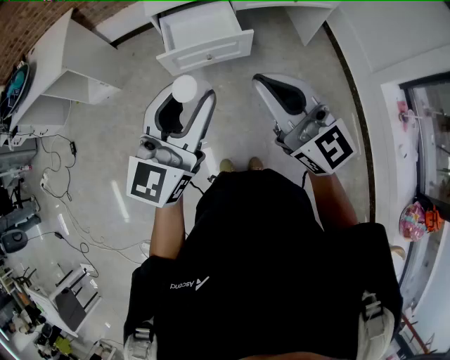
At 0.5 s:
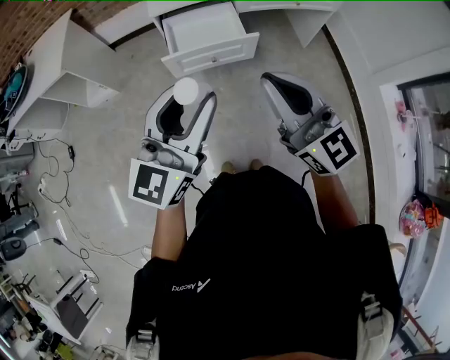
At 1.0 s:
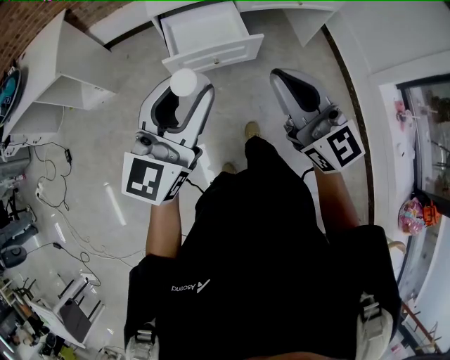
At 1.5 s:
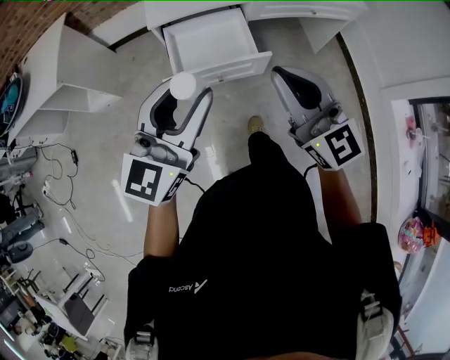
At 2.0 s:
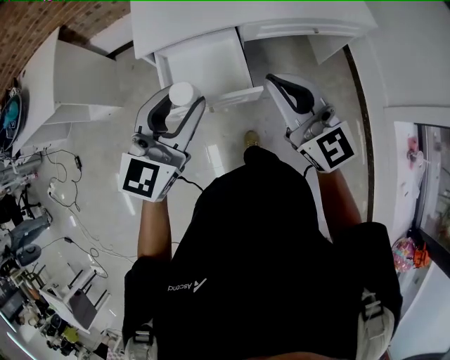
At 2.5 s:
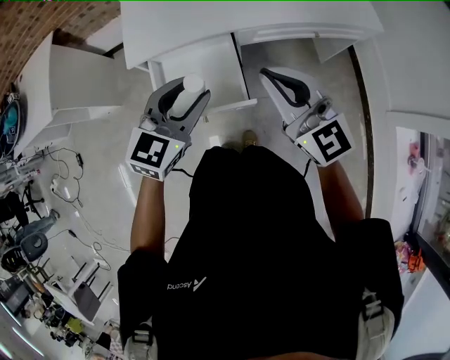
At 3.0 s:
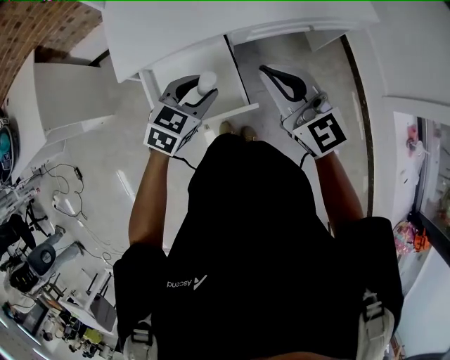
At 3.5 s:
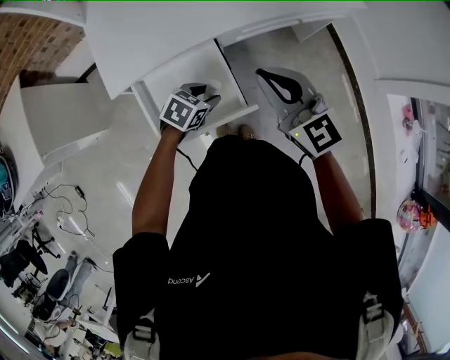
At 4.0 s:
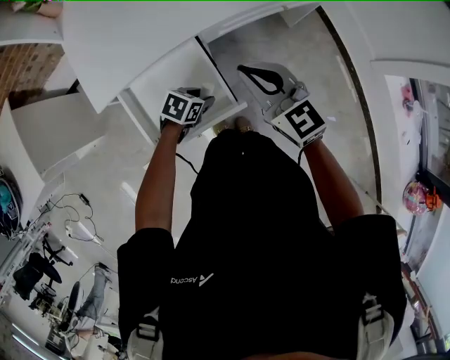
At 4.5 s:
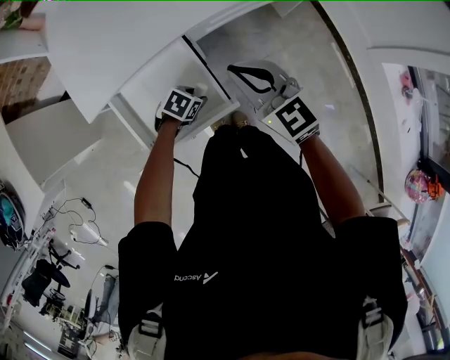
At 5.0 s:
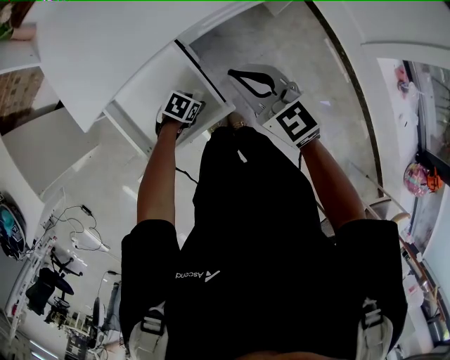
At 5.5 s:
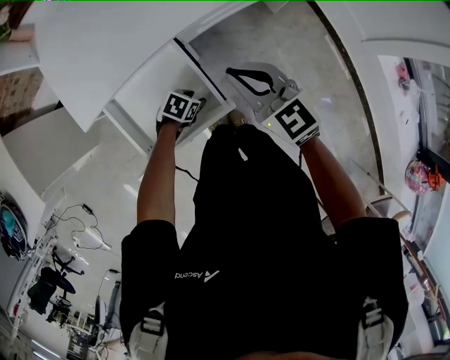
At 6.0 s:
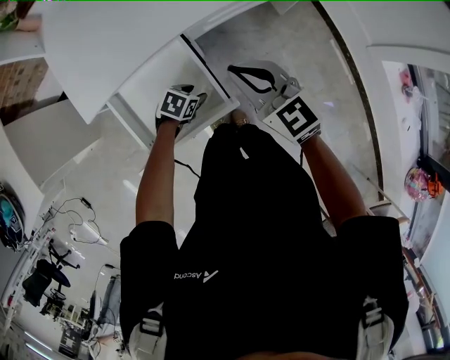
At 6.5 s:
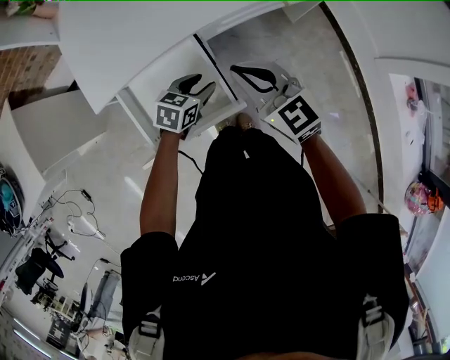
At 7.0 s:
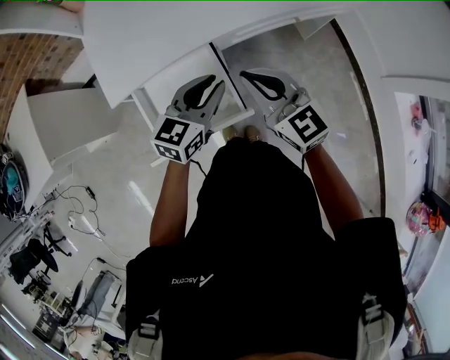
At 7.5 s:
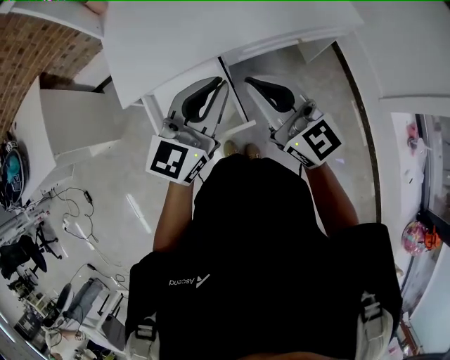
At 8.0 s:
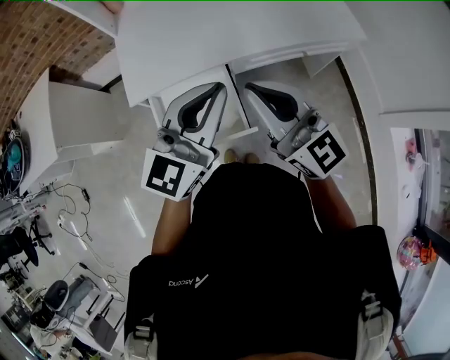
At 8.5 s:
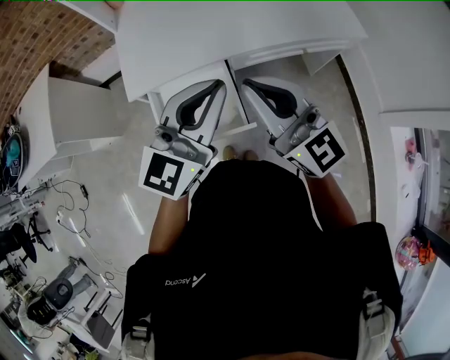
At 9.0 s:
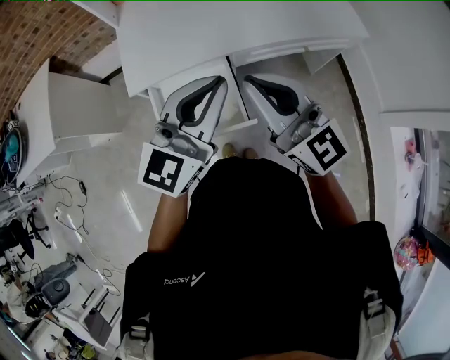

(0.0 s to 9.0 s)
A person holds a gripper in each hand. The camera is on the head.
0.0 s - 2.0 s: The grippers both shift forward by some 35 cm.
2.0 s - 4.5 s: The right gripper goes some 15 cm downward, and turns by about 20 degrees; the left gripper shifts about 40 cm downward, and angles its fingers downward, by about 50 degrees.
4.5 s - 7.0 s: The left gripper moves upward, roughly 25 cm, and angles its fingers upward, by roughly 40 degrees.
7.0 s - 9.0 s: Both grippers move upward, approximately 20 cm. The left gripper rotates some 30 degrees, while the right gripper changes its angle by about 20 degrees.

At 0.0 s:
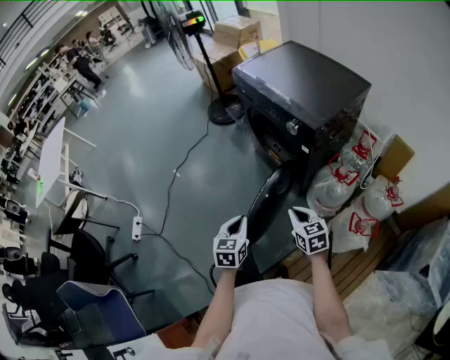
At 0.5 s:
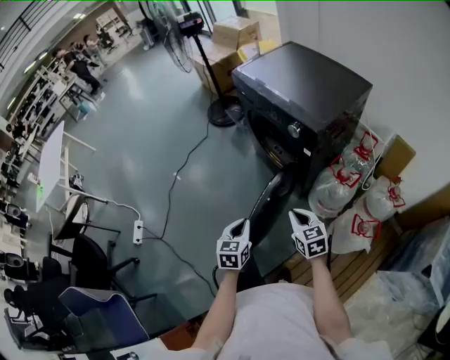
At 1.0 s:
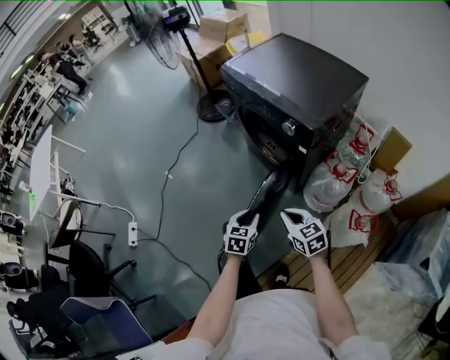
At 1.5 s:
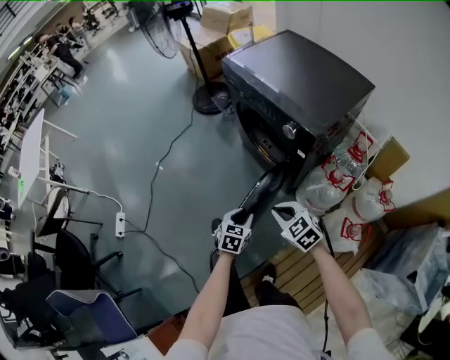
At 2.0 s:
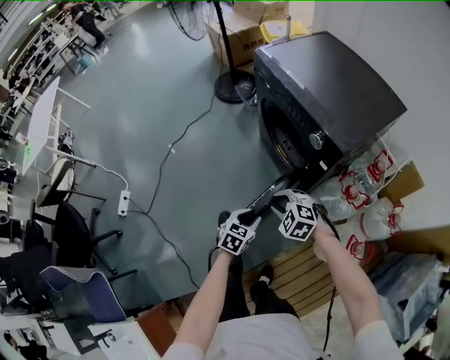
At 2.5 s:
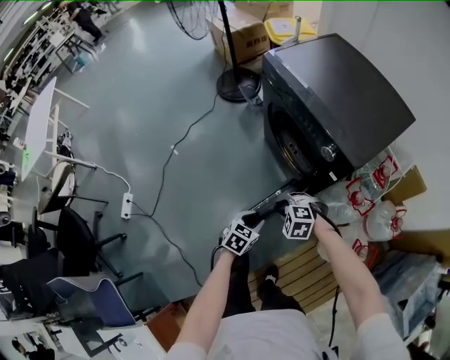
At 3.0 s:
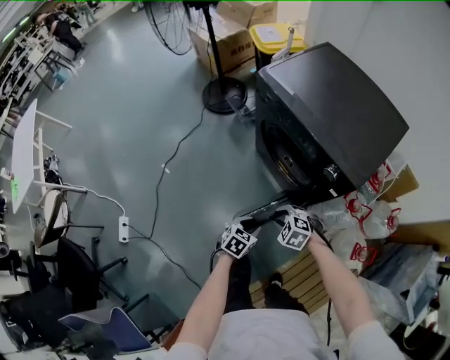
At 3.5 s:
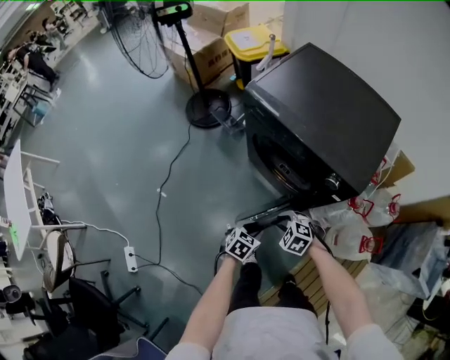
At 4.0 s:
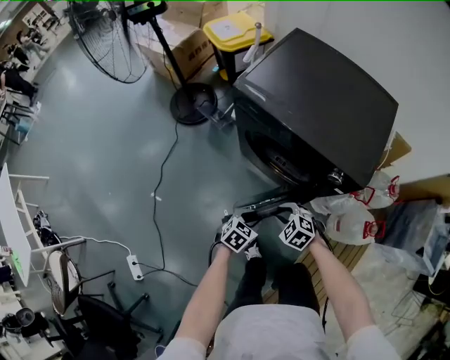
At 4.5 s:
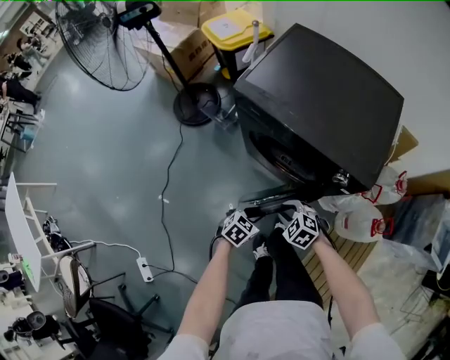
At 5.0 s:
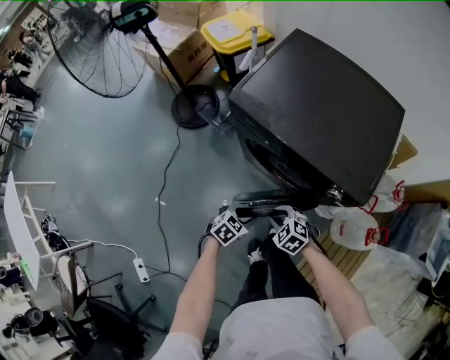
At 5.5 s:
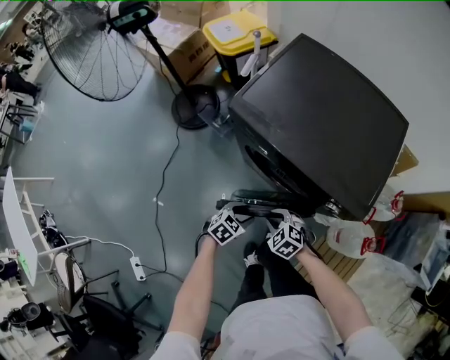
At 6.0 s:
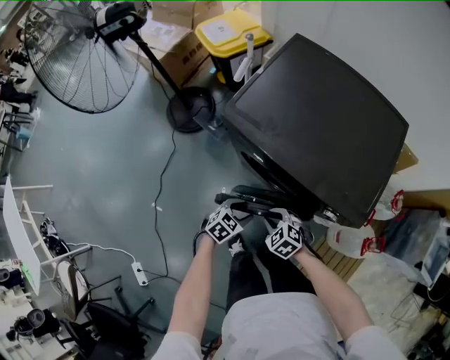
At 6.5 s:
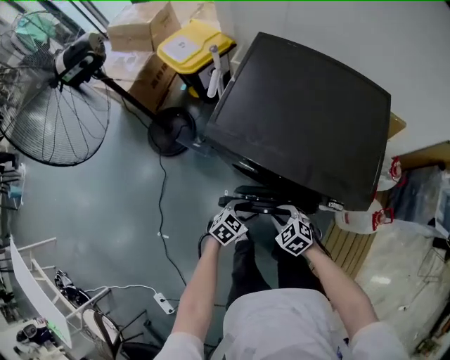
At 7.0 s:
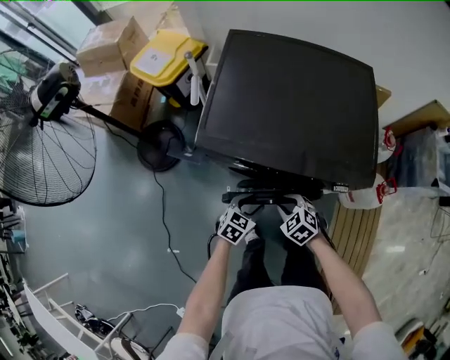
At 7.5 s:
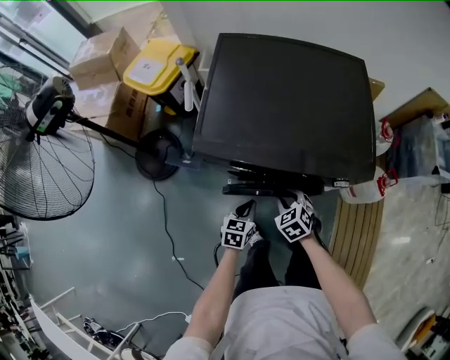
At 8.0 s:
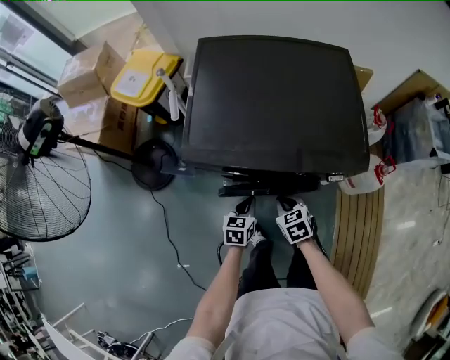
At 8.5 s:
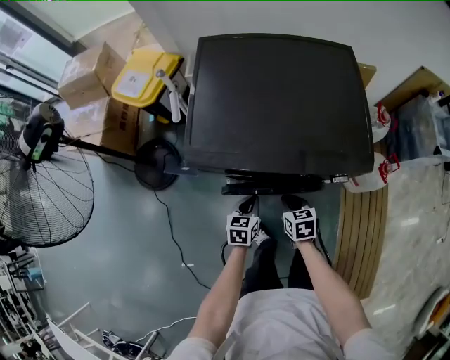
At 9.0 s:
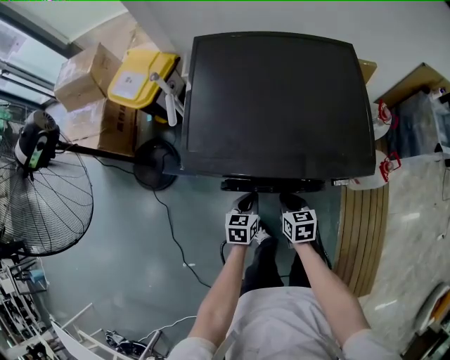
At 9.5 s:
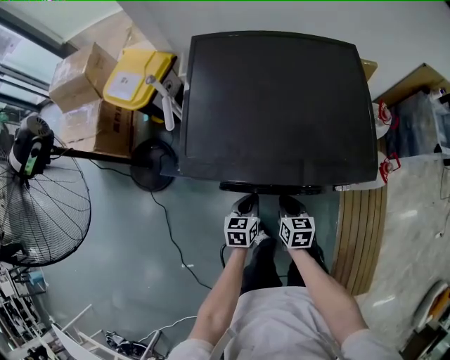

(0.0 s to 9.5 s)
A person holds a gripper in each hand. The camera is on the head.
0.0 s - 2.0 s: The left gripper moves downward and forward, roughly 15 cm, swivels about 20 degrees, and opens up. The right gripper moves forward, to the left and downward, some 15 cm, rotates around the line of its fingers by approximately 50 degrees, counterclockwise from behind, and opens its fingers.
2.0 s - 4.0 s: The left gripper ends up some 25 cm from where it was, and changes its angle by about 40 degrees; the right gripper shifts by some 20 cm, and rotates roughly 40 degrees.
4.0 s - 5.5 s: The right gripper changes place by roughly 10 cm, while the left gripper ends up some 10 cm from where it was.
5.5 s - 7.5 s: The right gripper shifts by some 15 cm, and swivels roughly 50 degrees, while the left gripper changes place by some 15 cm, and closes up.
7.5 s - 9.5 s: The left gripper moves forward, about 5 cm. Meanwhile the right gripper rolls clockwise, seen from behind, by some 50 degrees, and closes up.

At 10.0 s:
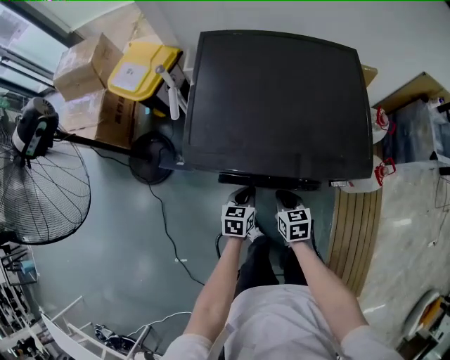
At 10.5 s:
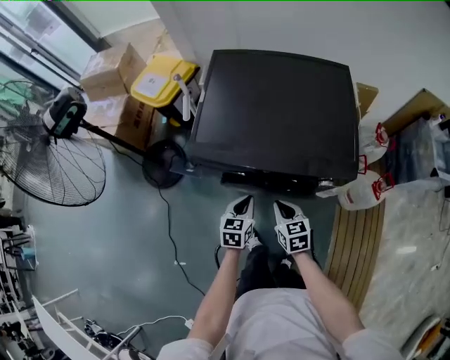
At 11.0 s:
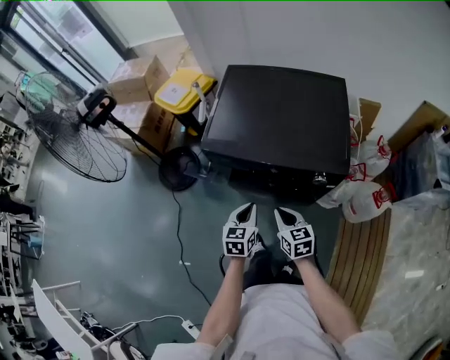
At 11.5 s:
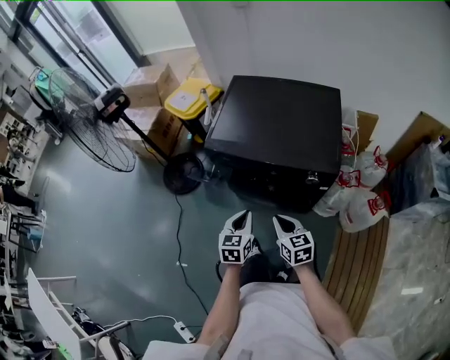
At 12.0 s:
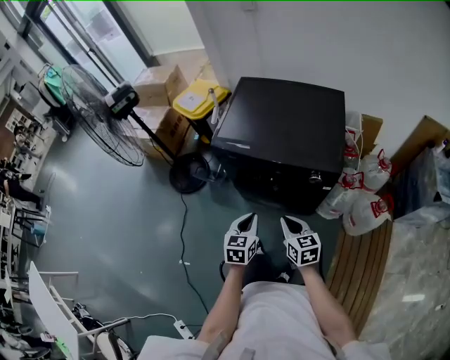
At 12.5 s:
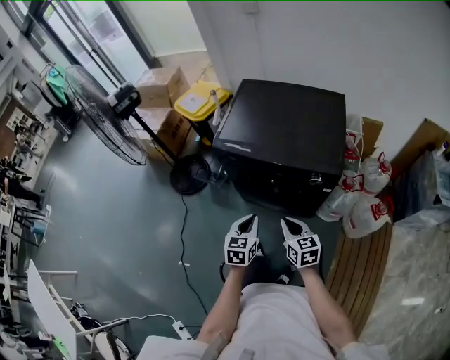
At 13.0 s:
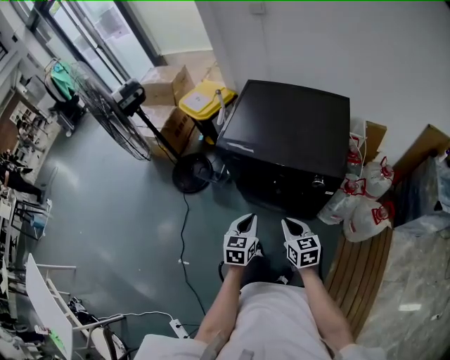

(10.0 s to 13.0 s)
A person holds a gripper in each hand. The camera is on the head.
10.0 s - 11.5 s: The right gripper moves backward and upward, some 25 cm, and changes its angle by roughly 30 degrees. Meanwhile the left gripper shifts about 25 cm upward and backward, and changes its angle by some 20 degrees.
11.5 s - 13.0 s: The grippers make only small movements.

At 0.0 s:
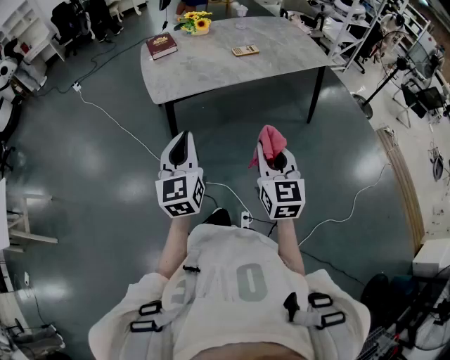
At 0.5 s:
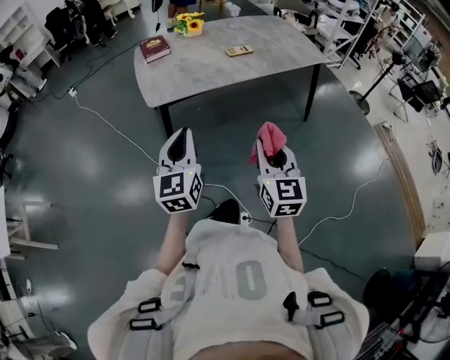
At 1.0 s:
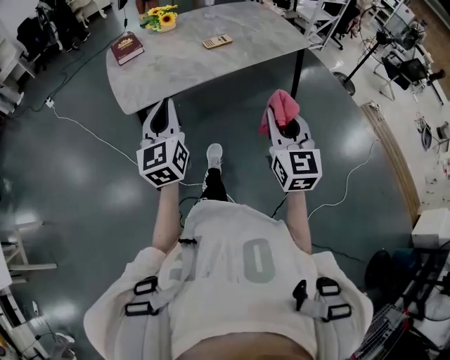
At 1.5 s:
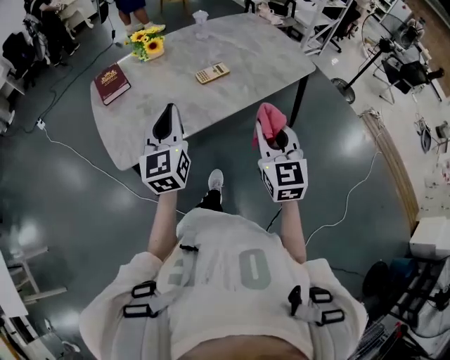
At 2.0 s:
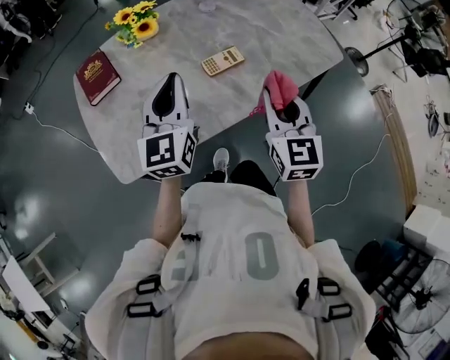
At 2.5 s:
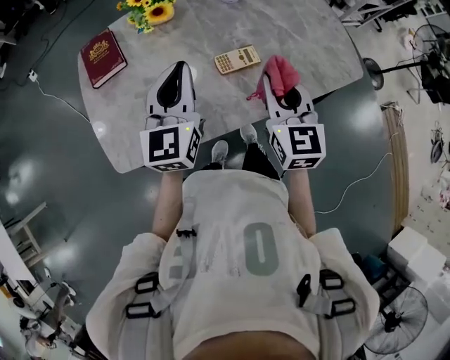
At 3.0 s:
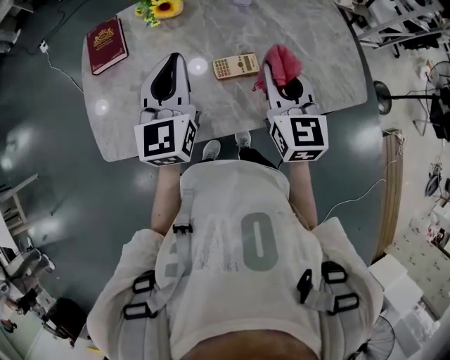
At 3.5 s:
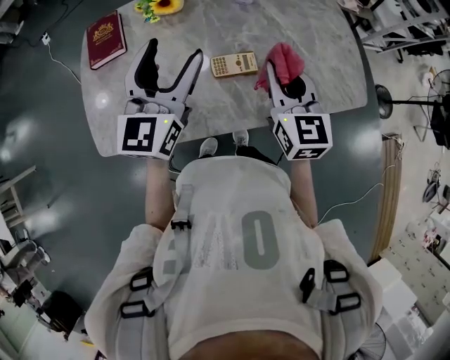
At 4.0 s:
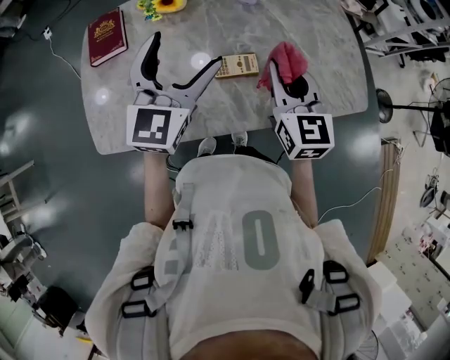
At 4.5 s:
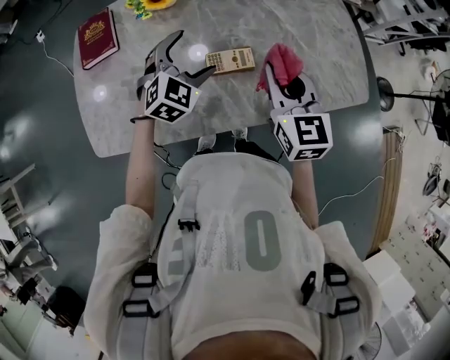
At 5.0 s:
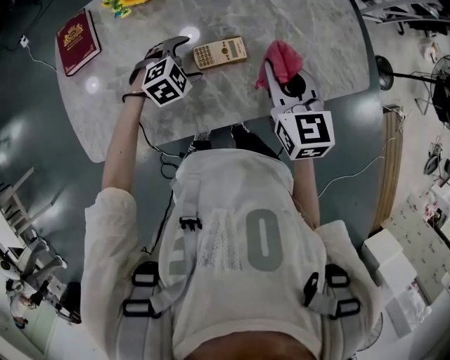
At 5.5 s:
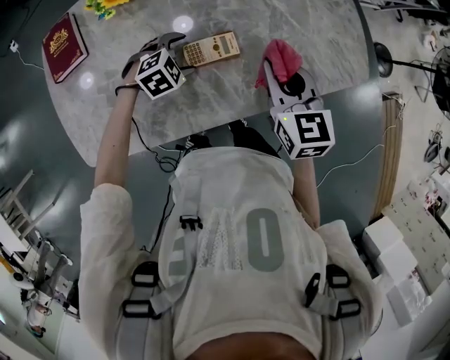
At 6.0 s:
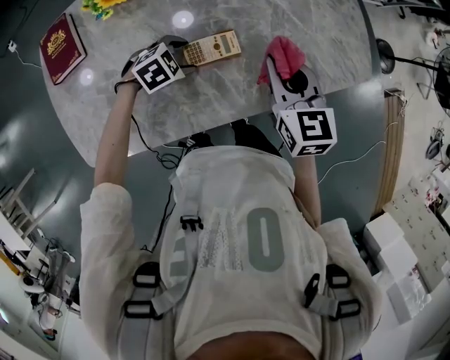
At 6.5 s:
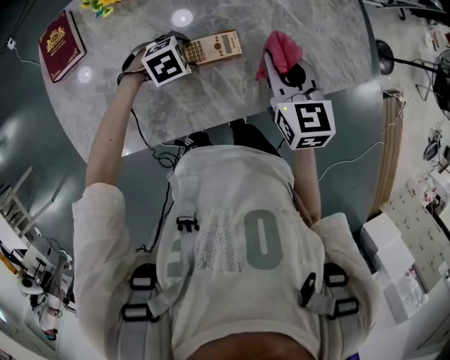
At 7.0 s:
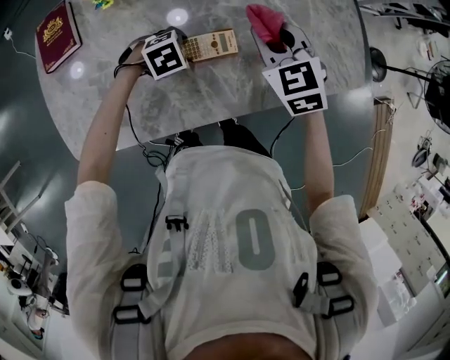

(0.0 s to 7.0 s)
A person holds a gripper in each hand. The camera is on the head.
0.0 s - 2.0 s: The two grippers travel together, forward, roughly 60 cm.
2.0 s - 3.5 s: The right gripper heads forward, covering approximately 15 cm, and changes its angle by about 20 degrees, while the left gripper goes roughly 10 cm forward, and opens its fingers.
3.5 s - 5.0 s: The right gripper is displaced downward by roughly 5 cm. Meanwhile the left gripper heads downward, covering roughly 30 cm, and points its fingers roughly 60 degrees further downward.
5.0 s - 7.0 s: The left gripper swivels some 20 degrees, and closes up, while the right gripper goes roughly 5 cm forward, and rotates some 30 degrees.
